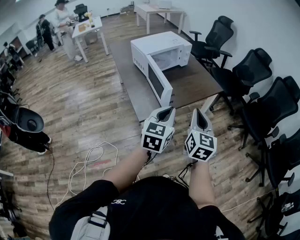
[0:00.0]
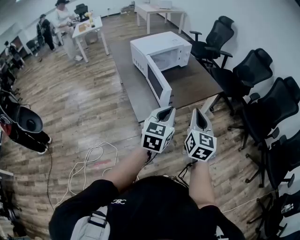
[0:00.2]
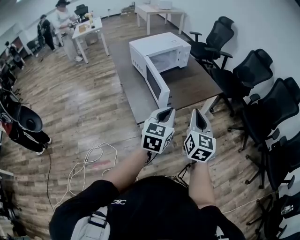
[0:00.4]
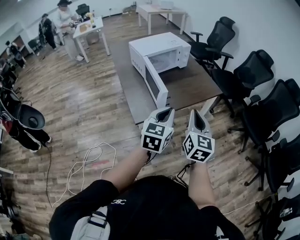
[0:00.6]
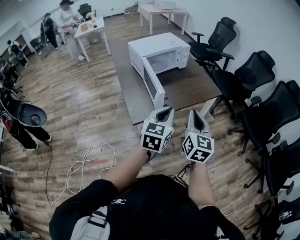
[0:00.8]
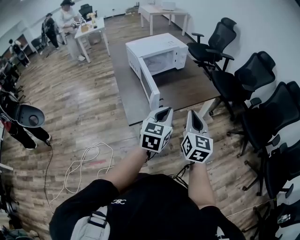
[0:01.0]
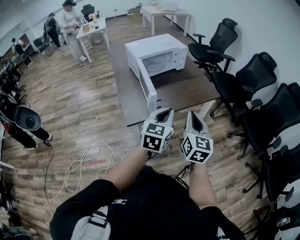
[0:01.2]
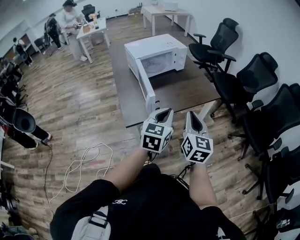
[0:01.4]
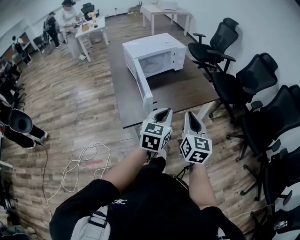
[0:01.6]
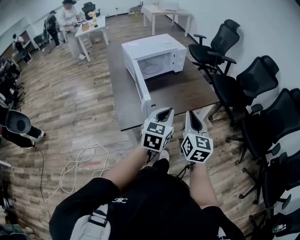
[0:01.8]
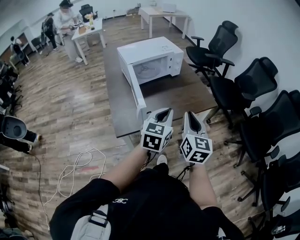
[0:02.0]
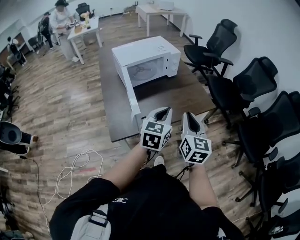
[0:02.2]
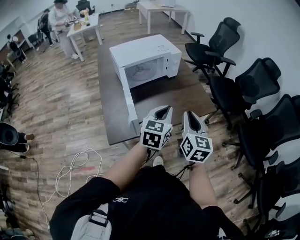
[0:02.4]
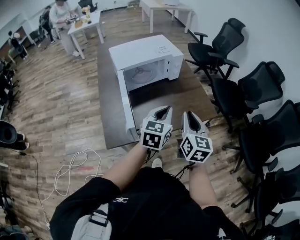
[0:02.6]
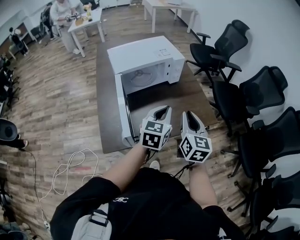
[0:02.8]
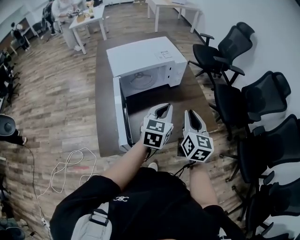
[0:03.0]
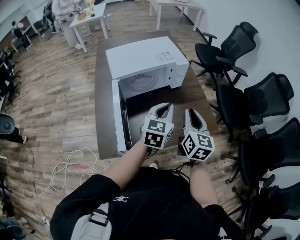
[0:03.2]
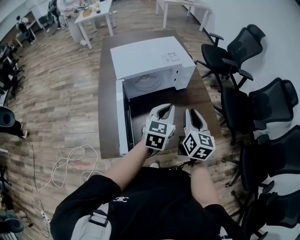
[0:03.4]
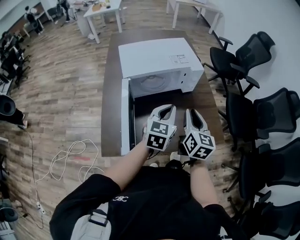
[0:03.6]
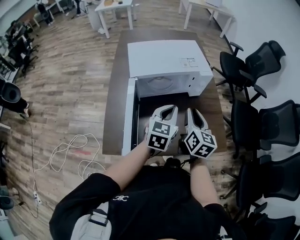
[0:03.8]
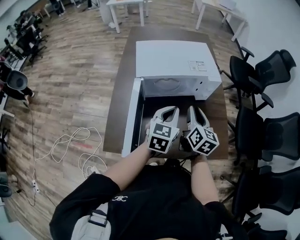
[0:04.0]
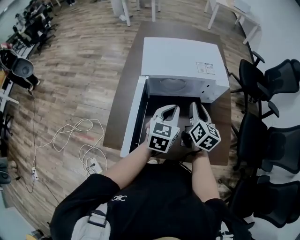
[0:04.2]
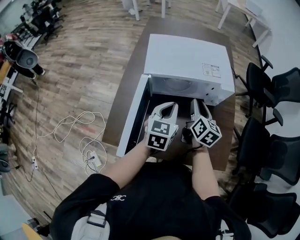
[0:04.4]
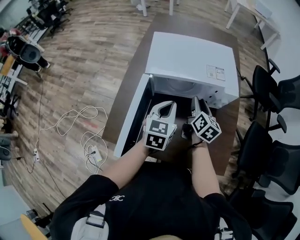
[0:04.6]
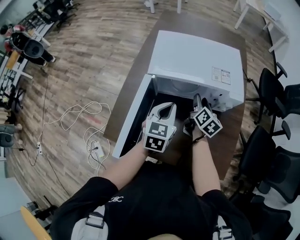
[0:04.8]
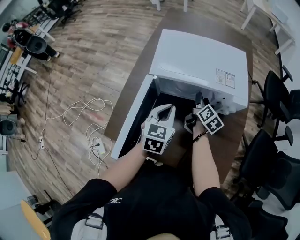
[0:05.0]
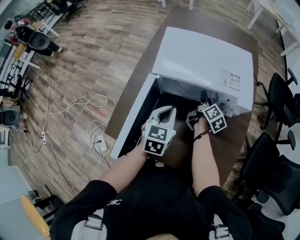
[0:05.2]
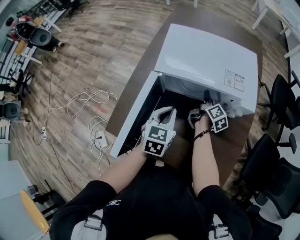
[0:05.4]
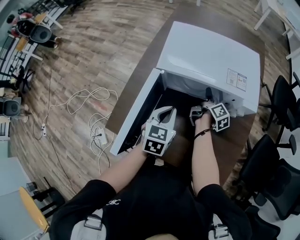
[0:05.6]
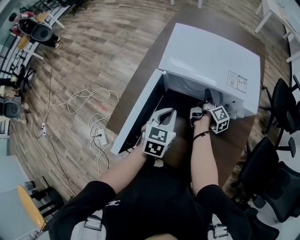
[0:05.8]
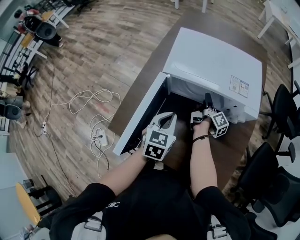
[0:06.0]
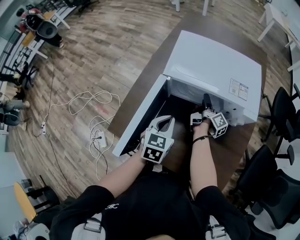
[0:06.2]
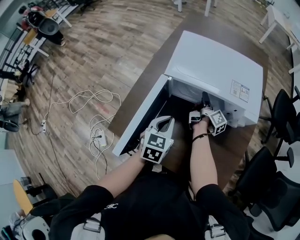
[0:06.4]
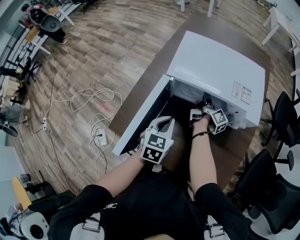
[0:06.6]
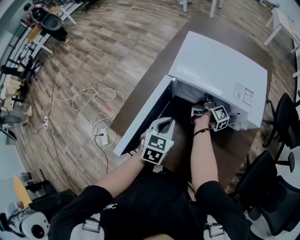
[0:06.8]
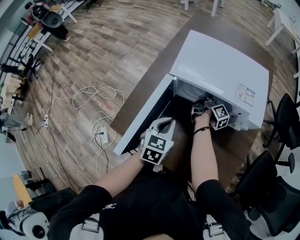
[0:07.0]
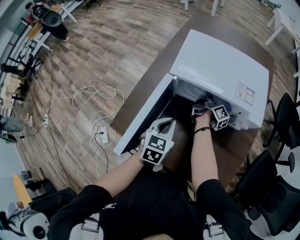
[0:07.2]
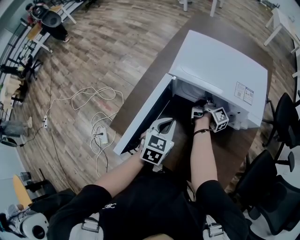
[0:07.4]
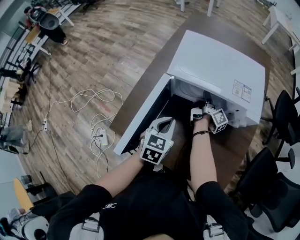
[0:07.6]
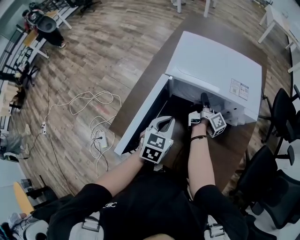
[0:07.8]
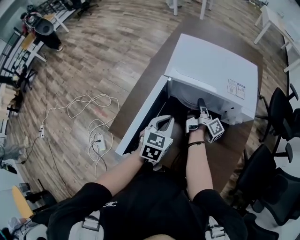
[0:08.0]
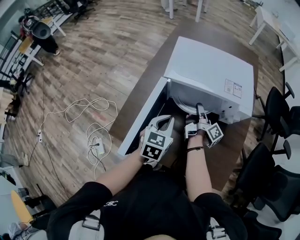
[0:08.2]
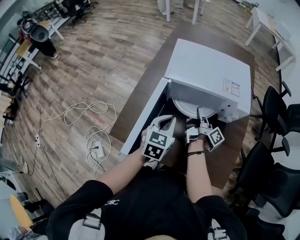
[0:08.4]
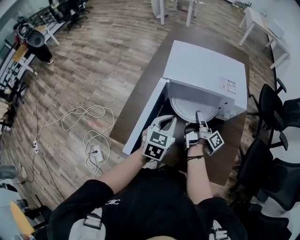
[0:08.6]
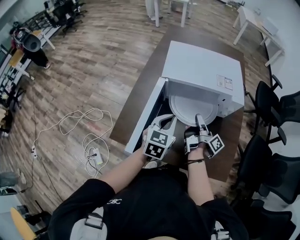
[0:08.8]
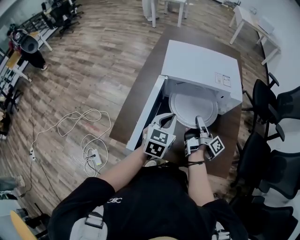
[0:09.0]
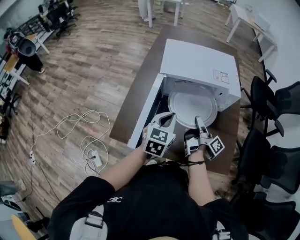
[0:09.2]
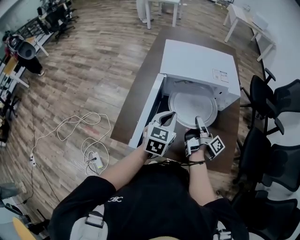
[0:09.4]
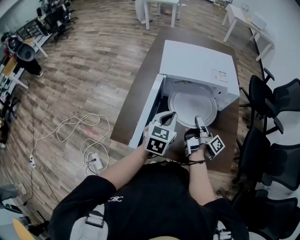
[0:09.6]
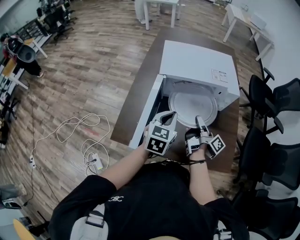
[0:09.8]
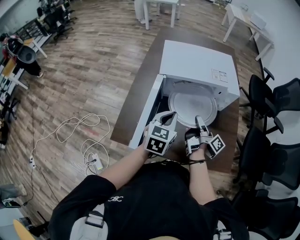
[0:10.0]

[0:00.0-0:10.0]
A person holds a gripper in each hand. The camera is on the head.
0:00.0 to 0:01.4: The right gripper moves forward and to the right, some 10 cm. The left gripper shifts about 10 cm to the right and forward.
0:01.4 to 0:02.8: Both grippers move forward, some 25 cm.
0:02.8 to 0:04.2: The left gripper shifts about 20 cm forward and to the left, and turns by approximately 20 degrees; the right gripper shifts about 25 cm forward, and swivels approximately 20 degrees.
0:04.2 to 0:05.8: The right gripper travels downward and forward by about 25 cm, rolls clockwise, seen from behind, by roughly 50 degrees, and opens. Meanwhile the left gripper is displaced downward and to the left by about 10 cm, and changes its angle by some 20 degrees.
0:05.8 to 0:07.2: The right gripper shifts by about 5 cm, and closes up.
0:07.2 to 0:08.6: The left gripper heads upward, covering approximately 5 cm, while the right gripper shifts some 20 cm backward and upward.
0:08.6 to 0:10.0: The right gripper is displaced backward by approximately 5 cm.

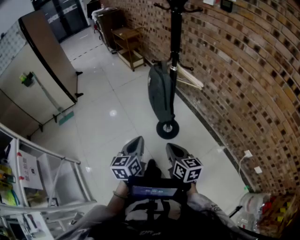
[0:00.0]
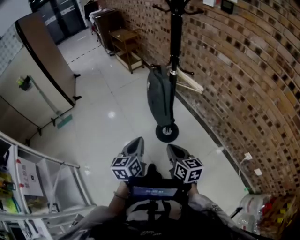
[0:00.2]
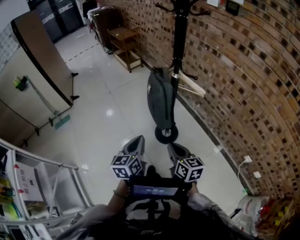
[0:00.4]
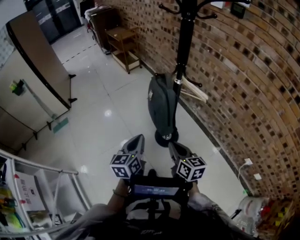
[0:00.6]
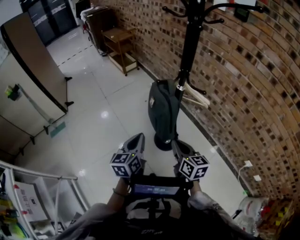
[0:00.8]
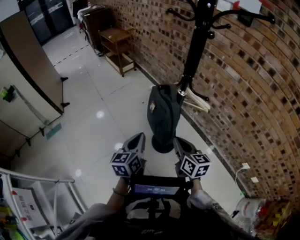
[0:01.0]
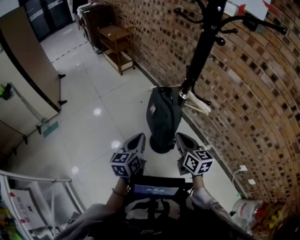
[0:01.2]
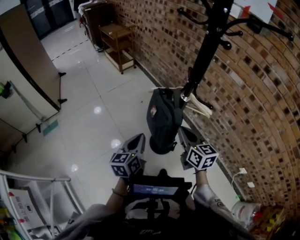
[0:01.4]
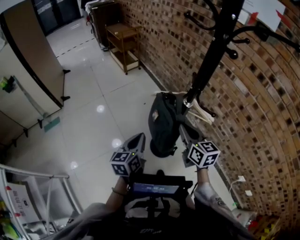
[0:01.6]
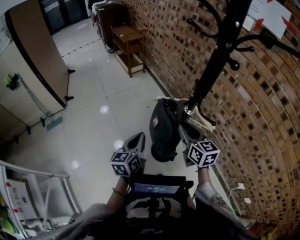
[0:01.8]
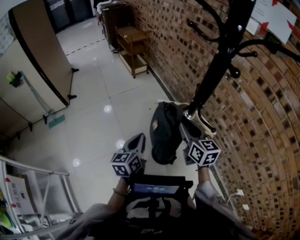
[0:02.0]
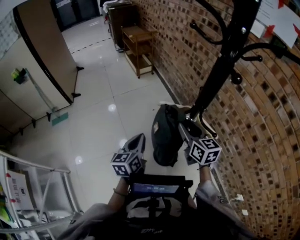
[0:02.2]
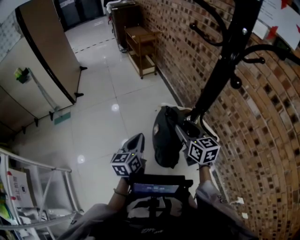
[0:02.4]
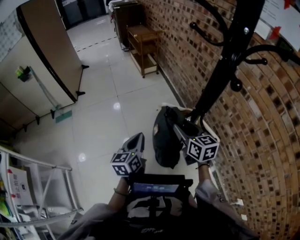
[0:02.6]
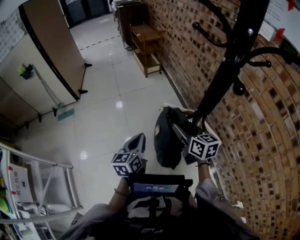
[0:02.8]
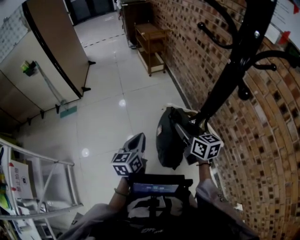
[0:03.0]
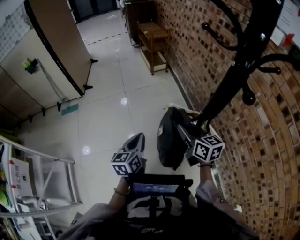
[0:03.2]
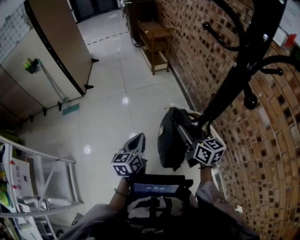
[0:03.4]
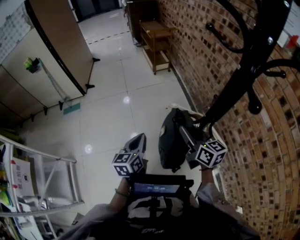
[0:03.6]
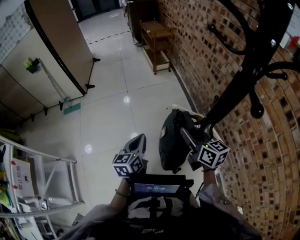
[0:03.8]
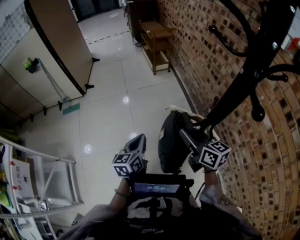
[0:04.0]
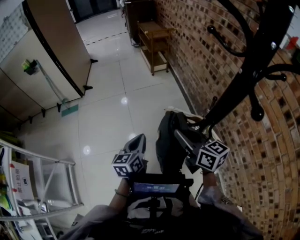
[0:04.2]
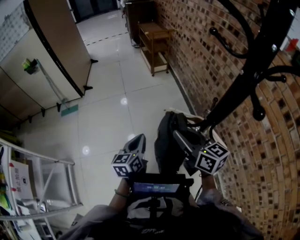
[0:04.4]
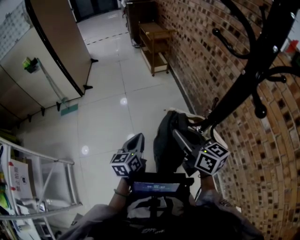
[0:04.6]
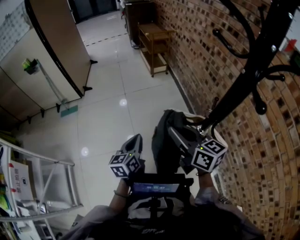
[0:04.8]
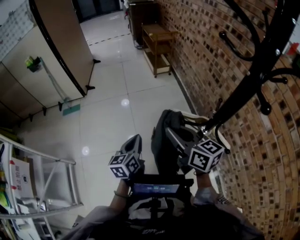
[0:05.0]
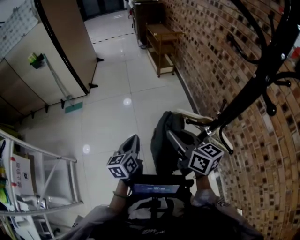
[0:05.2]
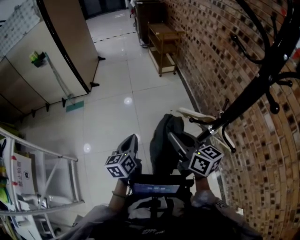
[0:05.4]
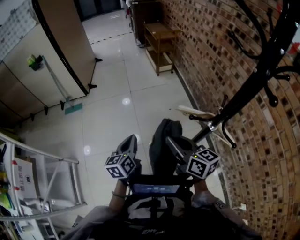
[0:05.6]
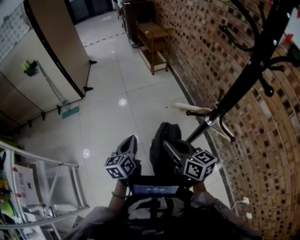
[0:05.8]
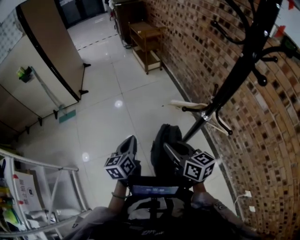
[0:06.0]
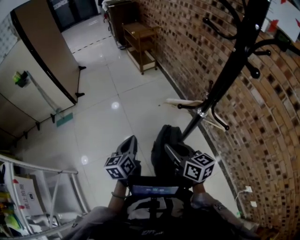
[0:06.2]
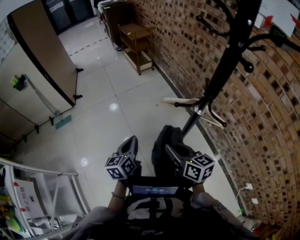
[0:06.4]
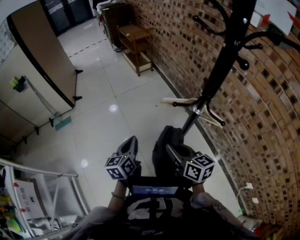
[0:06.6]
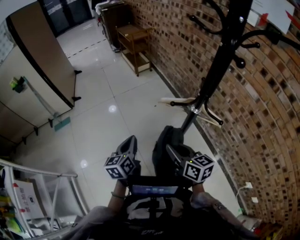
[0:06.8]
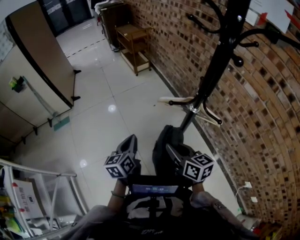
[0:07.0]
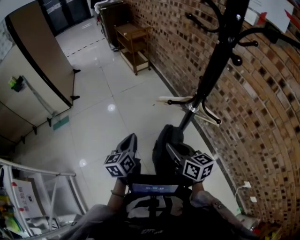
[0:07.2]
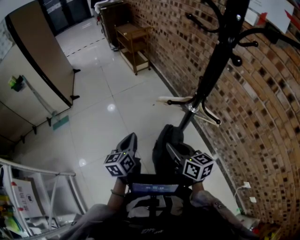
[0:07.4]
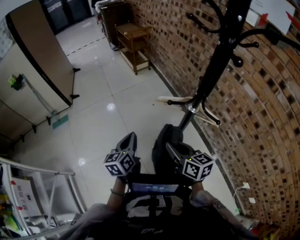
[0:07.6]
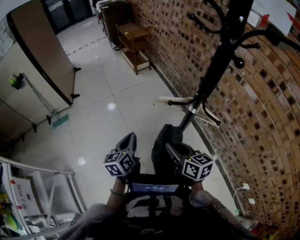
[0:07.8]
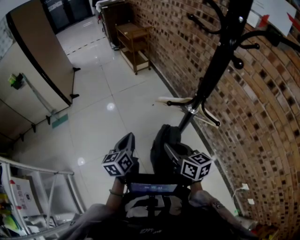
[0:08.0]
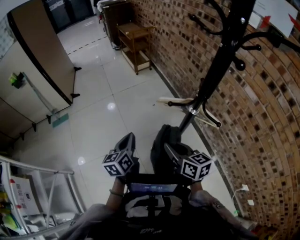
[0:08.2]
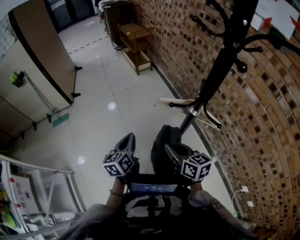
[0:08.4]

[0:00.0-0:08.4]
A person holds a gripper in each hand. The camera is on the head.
0:00.0 to 0:01.4: Both grippers travel together forward, some 25 cm.
0:01.4 to 0:02.8: The right gripper shifts some 15 cm forward, turns by about 20 degrees, and opens up. Meanwhile the left gripper shifts about 10 cm forward.
0:02.8 to 0:04.2: The right gripper is displaced upward by about 5 cm, and closes up.
0:04.2 to 0:05.6: Both grippers move to the left, about 10 cm.
0:05.6 to 0:07.0: The left gripper heads to the right, covering roughly 5 cm. The right gripper goes roughly 10 cm backward and downward.
0:07.0 to 0:08.4: Both grippers stay put.

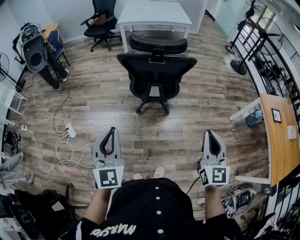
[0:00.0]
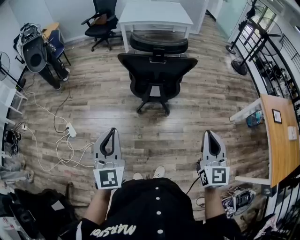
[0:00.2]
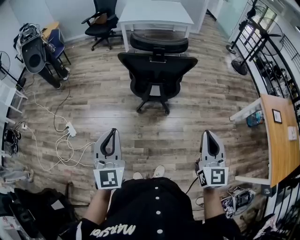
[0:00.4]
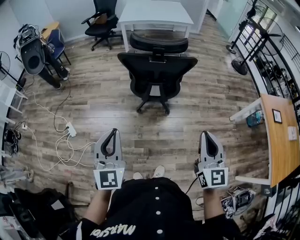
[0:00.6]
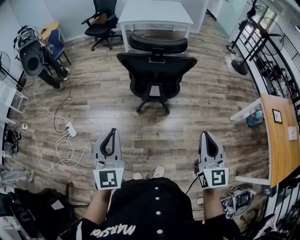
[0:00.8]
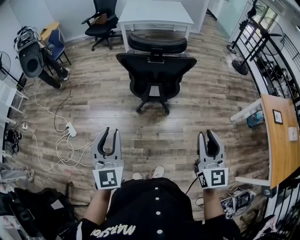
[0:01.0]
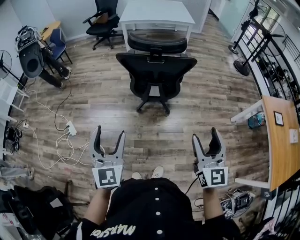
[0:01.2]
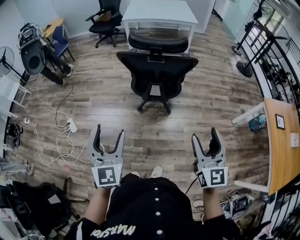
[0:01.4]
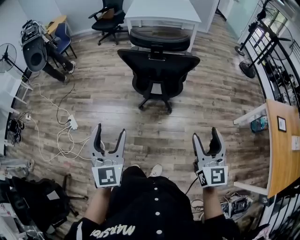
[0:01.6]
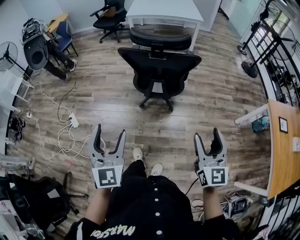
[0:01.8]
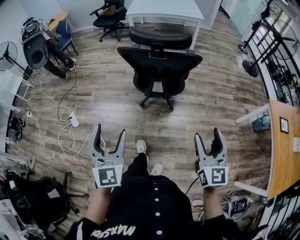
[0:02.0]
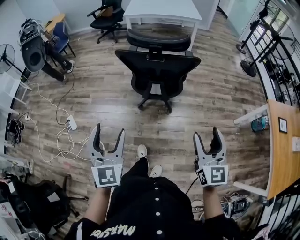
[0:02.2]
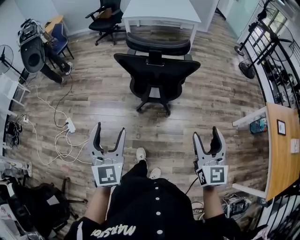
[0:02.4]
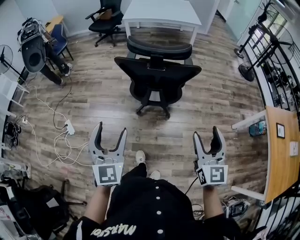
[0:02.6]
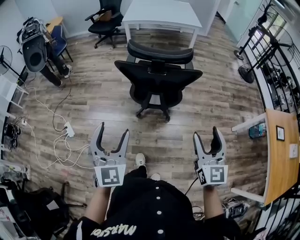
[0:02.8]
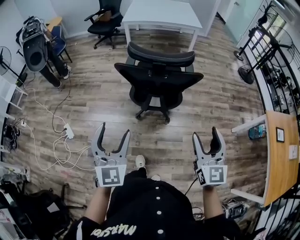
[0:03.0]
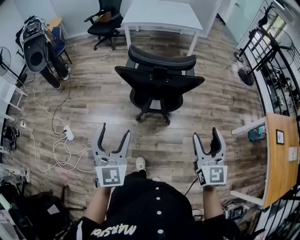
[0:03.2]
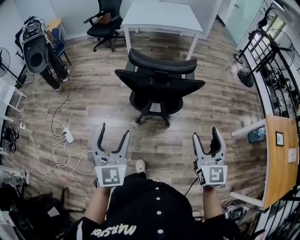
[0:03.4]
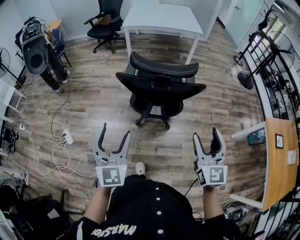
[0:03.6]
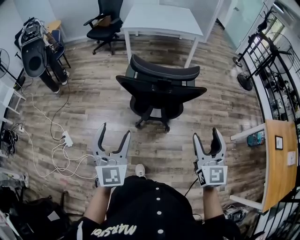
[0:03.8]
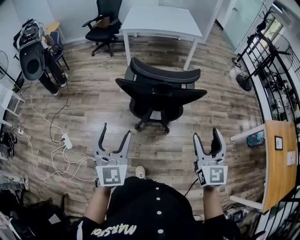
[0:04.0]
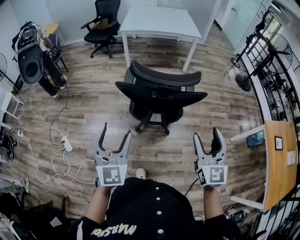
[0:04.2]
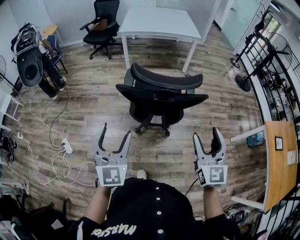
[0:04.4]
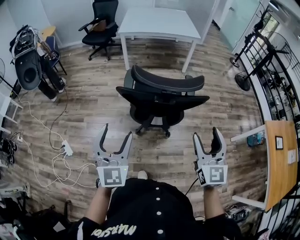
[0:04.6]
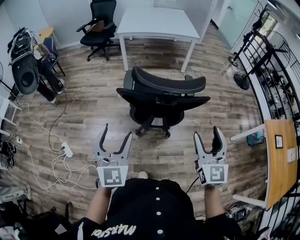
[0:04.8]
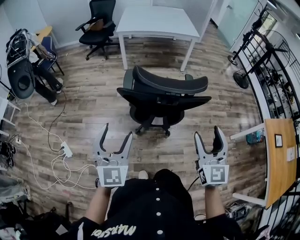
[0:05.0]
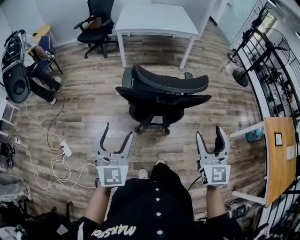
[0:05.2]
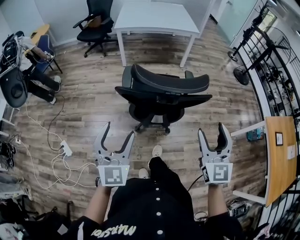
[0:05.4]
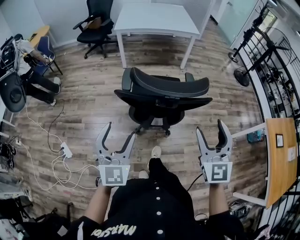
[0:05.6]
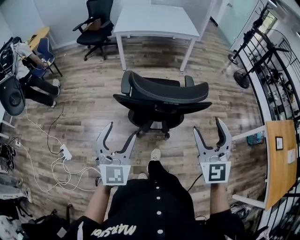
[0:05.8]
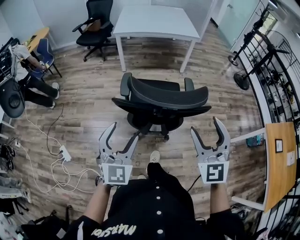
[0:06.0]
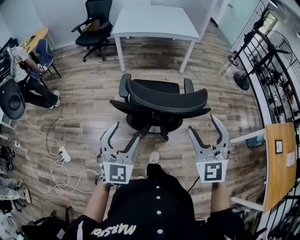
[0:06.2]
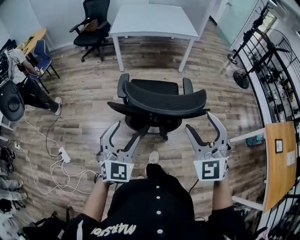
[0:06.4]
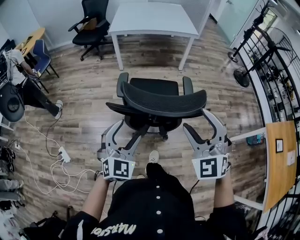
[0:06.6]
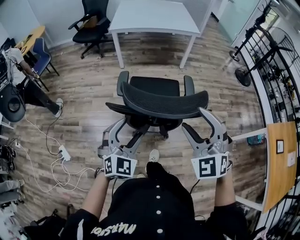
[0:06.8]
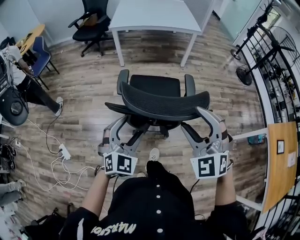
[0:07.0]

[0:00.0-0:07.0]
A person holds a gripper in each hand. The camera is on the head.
0:00.0 to 0:01.4: The right gripper opens up. Meanwhile the left gripper opens up.
0:01.4 to 0:02.8: Both grippers travel together forward, approximately 10 cm.
0:02.8 to 0:04.2: The two grippers go approximately 10 cm forward.
0:04.2 to 0:05.6: Both grippers travel together forward, approximately 5 cm.
0:05.6 to 0:07.0: The left gripper shifts about 15 cm forward, downward and to the right, and turns by about 30 degrees, while the right gripper is displaced forward by about 10 cm, and swivels roughly 40 degrees.
